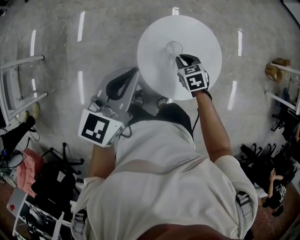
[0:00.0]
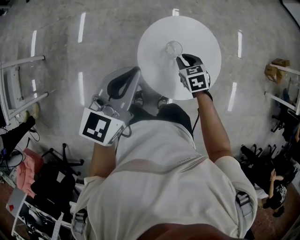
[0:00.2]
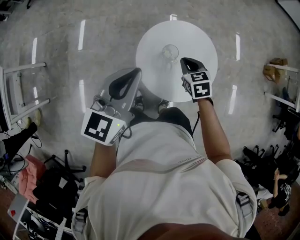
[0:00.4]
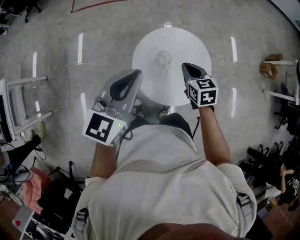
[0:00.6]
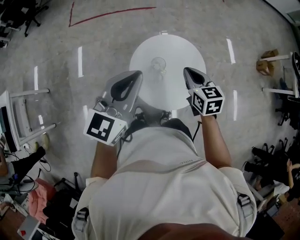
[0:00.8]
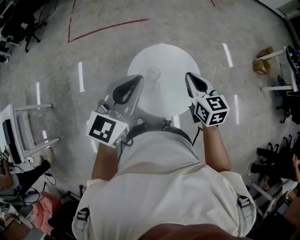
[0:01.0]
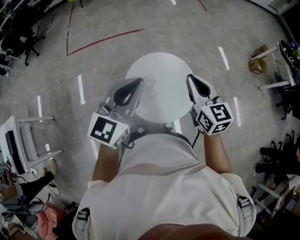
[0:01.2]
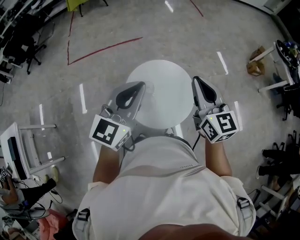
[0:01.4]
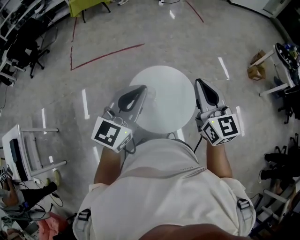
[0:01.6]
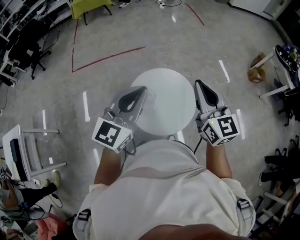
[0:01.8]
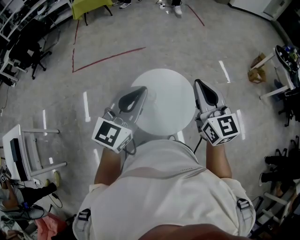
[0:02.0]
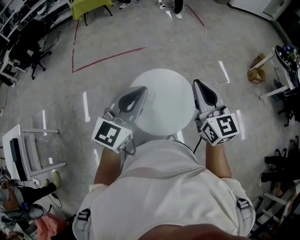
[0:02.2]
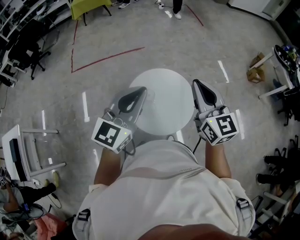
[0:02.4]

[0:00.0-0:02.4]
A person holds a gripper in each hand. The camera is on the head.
0:00.0 to 0:01.2: The left gripper shifts some 20 cm upward and to the right, and rotates approximately 20 degrees. The right gripper heads upward, covering some 35 cm, and angles its fingers upward, by some 40 degrees.
0:01.2 to 0:02.4: The left gripper changes place by about 5 cm. Meanwhile the right gripper moves upward, some 10 cm.

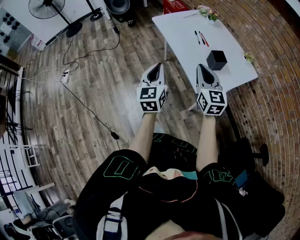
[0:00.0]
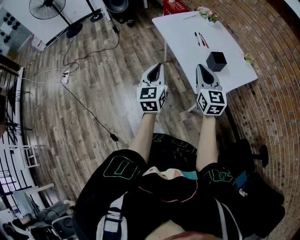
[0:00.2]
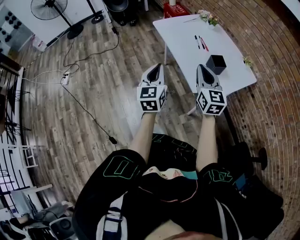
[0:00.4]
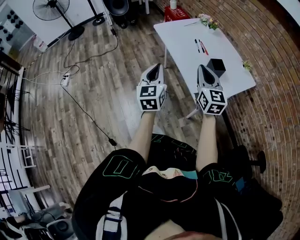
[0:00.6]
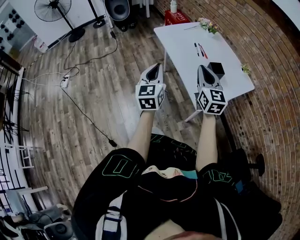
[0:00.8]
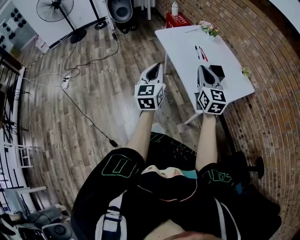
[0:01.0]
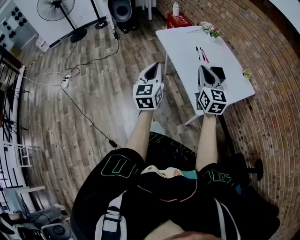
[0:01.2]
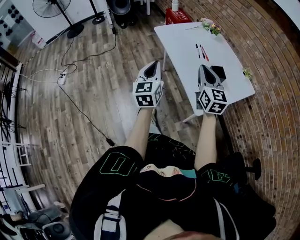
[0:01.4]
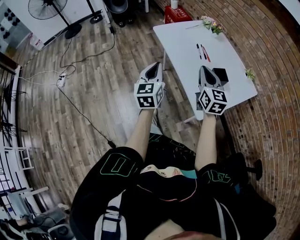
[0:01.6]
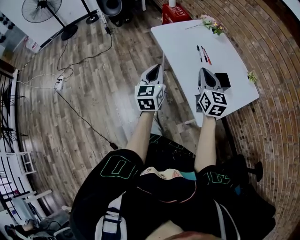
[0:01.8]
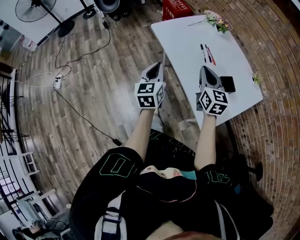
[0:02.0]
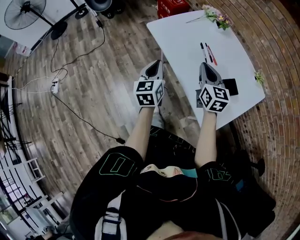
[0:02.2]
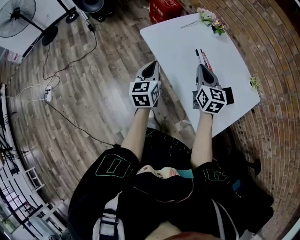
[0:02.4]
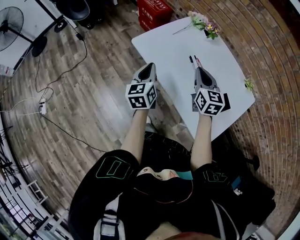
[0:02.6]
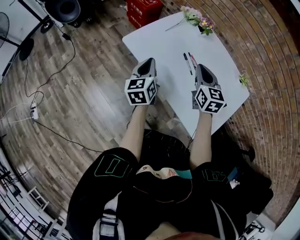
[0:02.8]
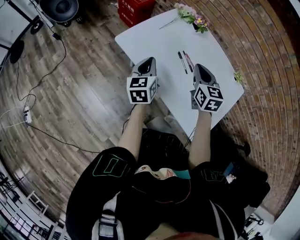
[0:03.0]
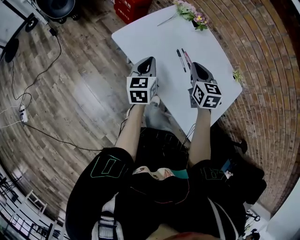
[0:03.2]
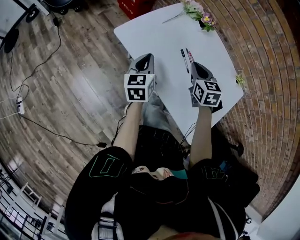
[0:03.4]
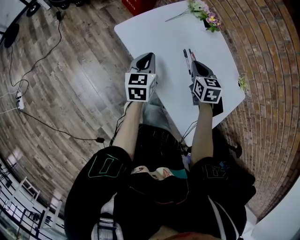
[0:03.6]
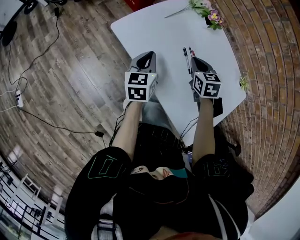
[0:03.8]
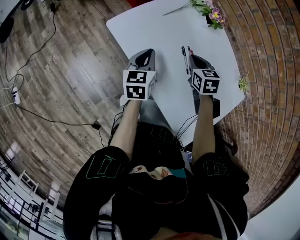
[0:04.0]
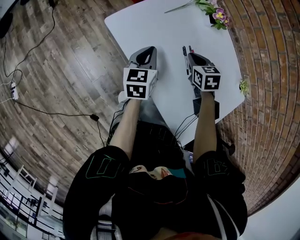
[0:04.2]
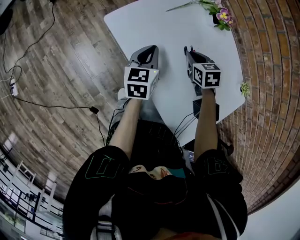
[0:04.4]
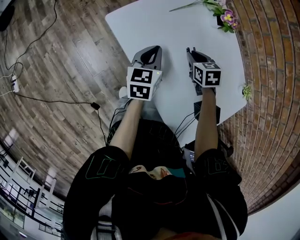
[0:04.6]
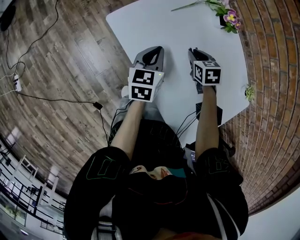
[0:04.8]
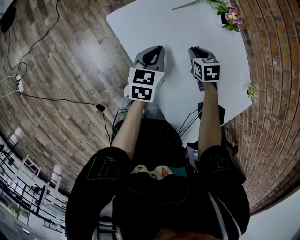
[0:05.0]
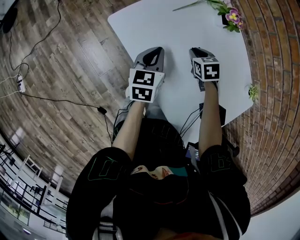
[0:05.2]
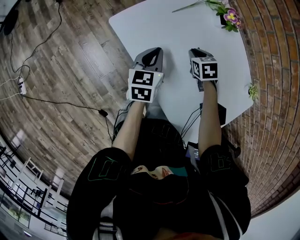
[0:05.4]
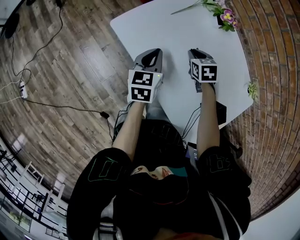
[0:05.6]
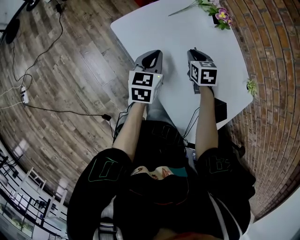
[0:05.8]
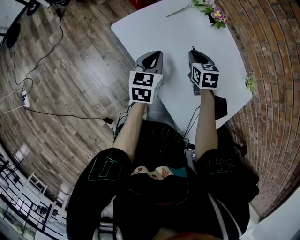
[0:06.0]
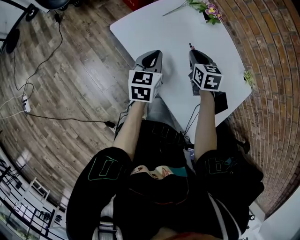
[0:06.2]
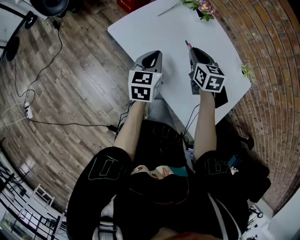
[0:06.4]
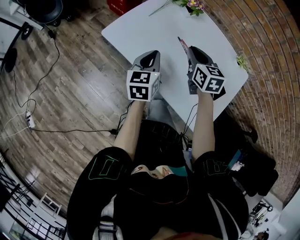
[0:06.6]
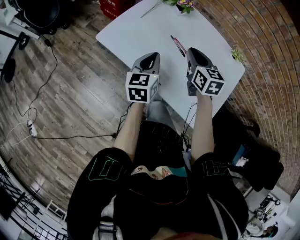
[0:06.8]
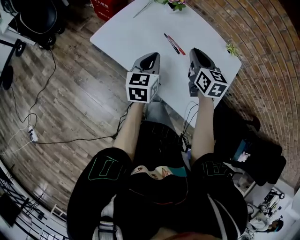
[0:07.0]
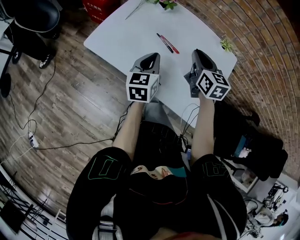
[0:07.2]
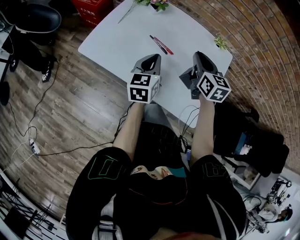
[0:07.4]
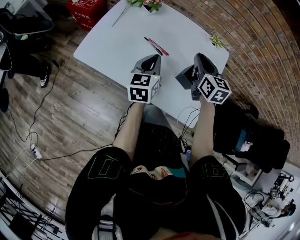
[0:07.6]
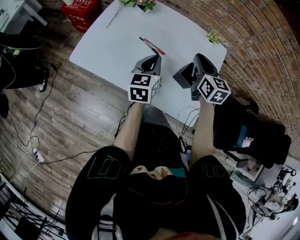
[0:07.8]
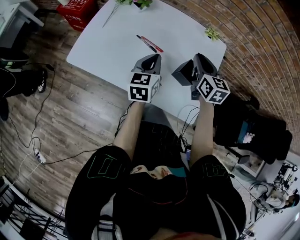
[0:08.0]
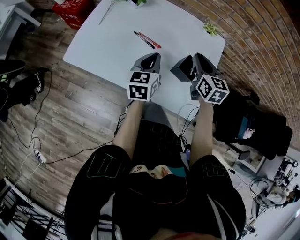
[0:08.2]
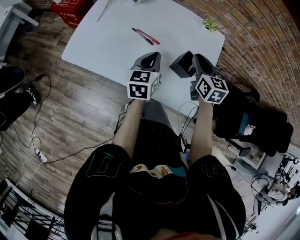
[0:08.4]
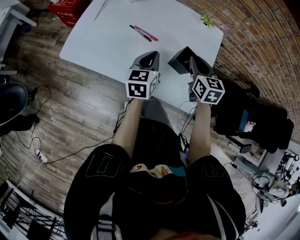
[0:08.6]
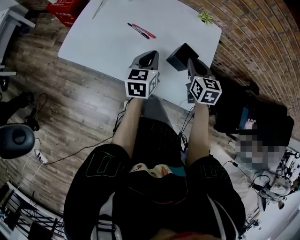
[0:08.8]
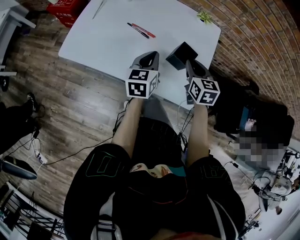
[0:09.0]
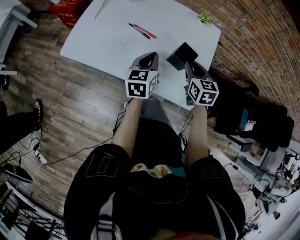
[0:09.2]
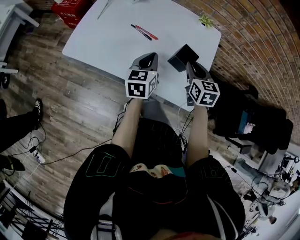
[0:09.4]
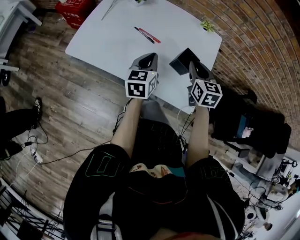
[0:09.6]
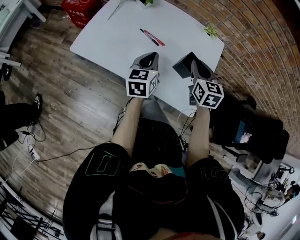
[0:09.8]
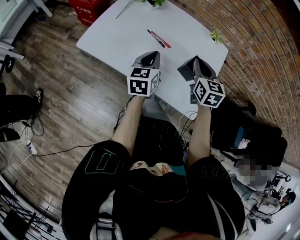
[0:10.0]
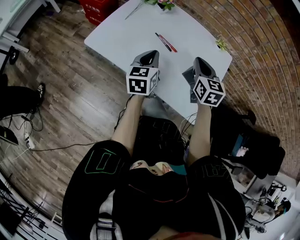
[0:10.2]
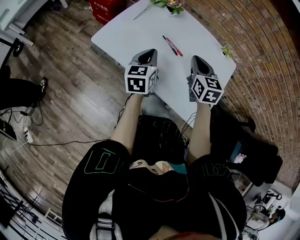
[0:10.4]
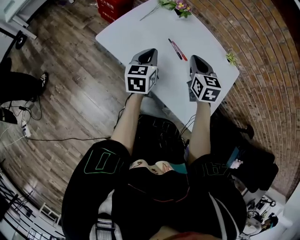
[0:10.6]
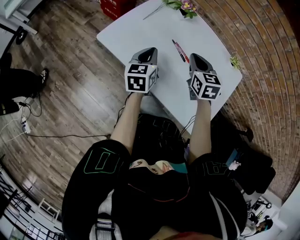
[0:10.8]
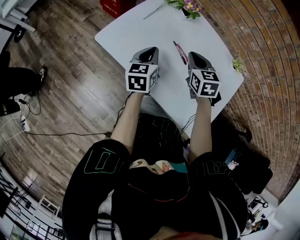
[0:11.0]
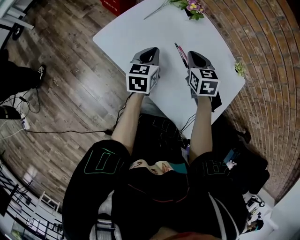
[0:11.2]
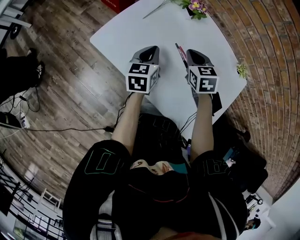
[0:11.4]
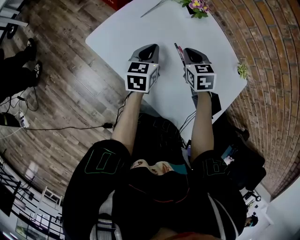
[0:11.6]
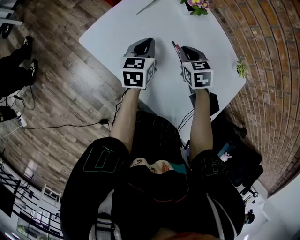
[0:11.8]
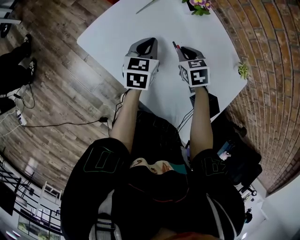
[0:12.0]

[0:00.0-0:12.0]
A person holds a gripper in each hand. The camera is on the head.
0:00.0 to 0:01.6: Both grippers travel together forward, some 10 cm.
0:01.6 to 0:03.0: Both grippers move forward, roughly 30 cm. The left gripper changes its angle by about 30 degrees. The right gripper swivels approximately 30 degrees.
0:03.0 to 0:04.4: The left gripper is displaced downward and forward by approximately 10 cm; the right gripper heads downward and forward, covering some 20 cm, and tilts its fingers some 30 degrees downward.
0:04.4 to 0:06.0: The grippers move only a little.
0:06.0 to 0:07.6: The left gripper goes approximately 20 cm to the right, and swivels approximately 20 degrees. Meanwhile the right gripper moves to the right, upward and backward, about 25 cm, and turns by roughly 40 degrees.
0:07.6 to 0:09.0: The right gripper moves backward, downward and to the right, some 15 cm. The left gripper goes about 5 cm to the right.
0:09.0 to 0:10.4: The left gripper moves to the left, about 15 cm. The right gripper heads to the left and upward, covering about 15 cm.
0:10.4 to 0:12.0: The right gripper travels downward, forward and to the left by approximately 25 cm, and points its fingers roughly 30 degrees further downward, while the left gripper shifts about 20 cm forward and downward.

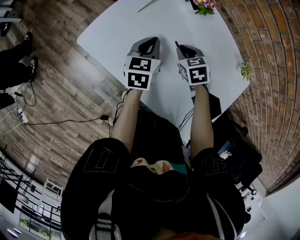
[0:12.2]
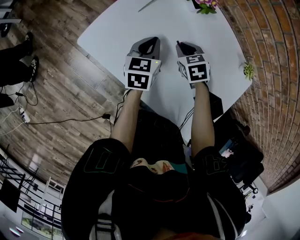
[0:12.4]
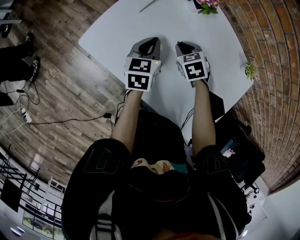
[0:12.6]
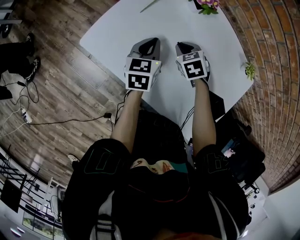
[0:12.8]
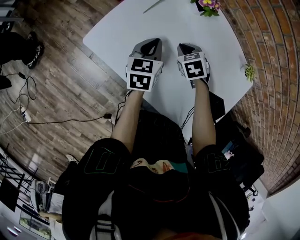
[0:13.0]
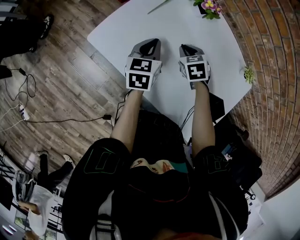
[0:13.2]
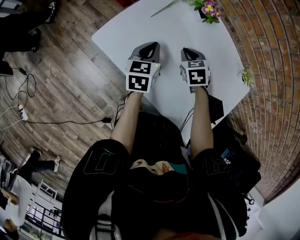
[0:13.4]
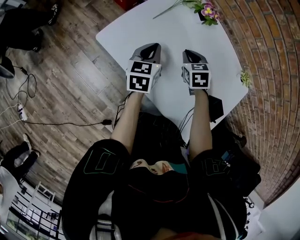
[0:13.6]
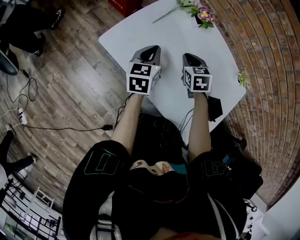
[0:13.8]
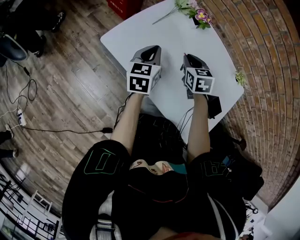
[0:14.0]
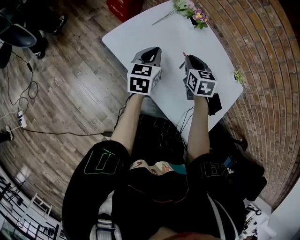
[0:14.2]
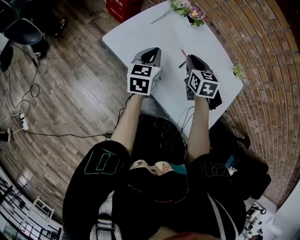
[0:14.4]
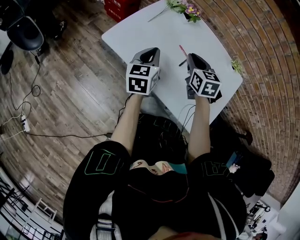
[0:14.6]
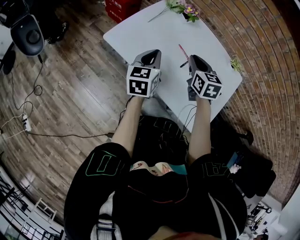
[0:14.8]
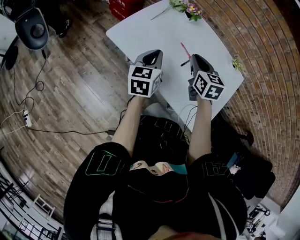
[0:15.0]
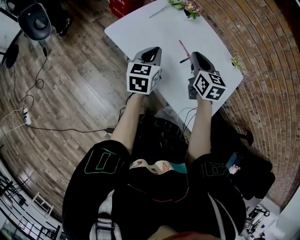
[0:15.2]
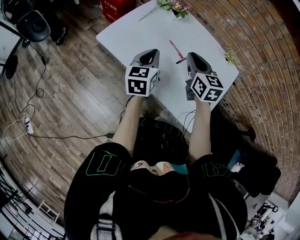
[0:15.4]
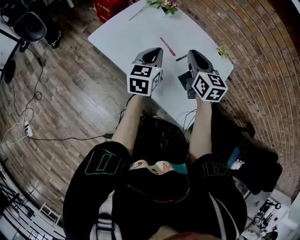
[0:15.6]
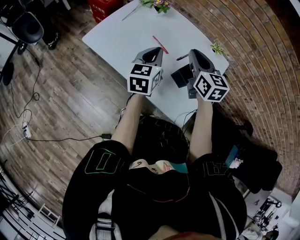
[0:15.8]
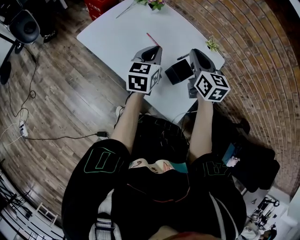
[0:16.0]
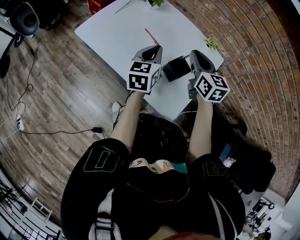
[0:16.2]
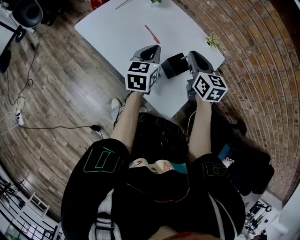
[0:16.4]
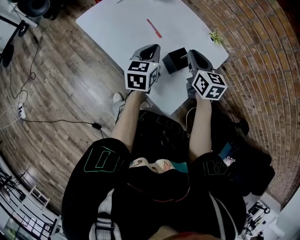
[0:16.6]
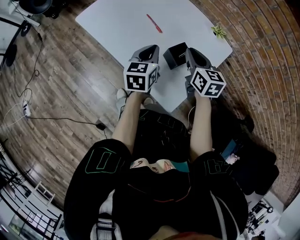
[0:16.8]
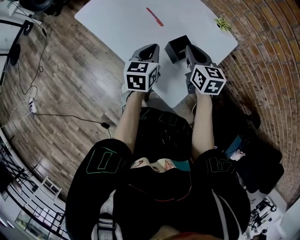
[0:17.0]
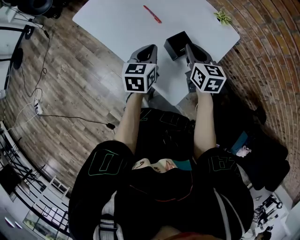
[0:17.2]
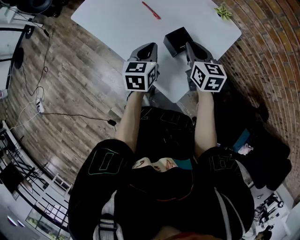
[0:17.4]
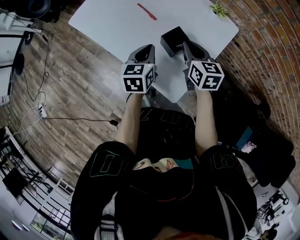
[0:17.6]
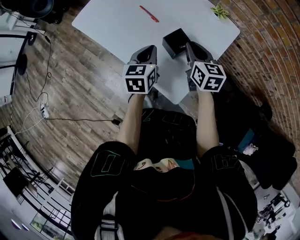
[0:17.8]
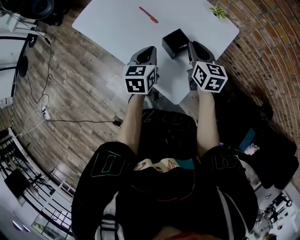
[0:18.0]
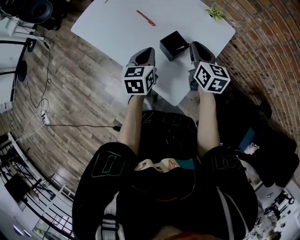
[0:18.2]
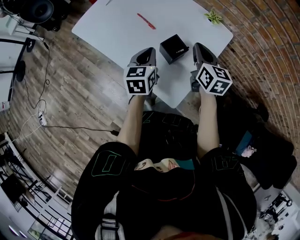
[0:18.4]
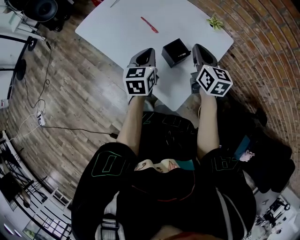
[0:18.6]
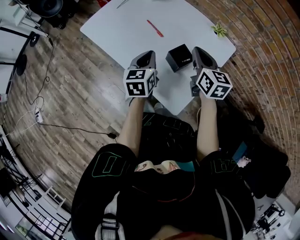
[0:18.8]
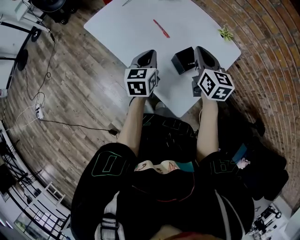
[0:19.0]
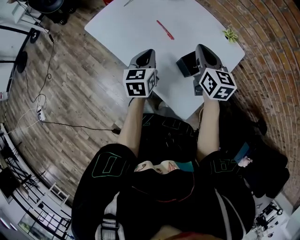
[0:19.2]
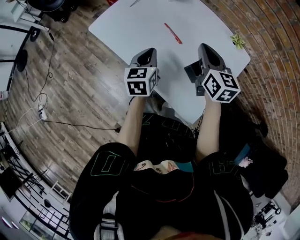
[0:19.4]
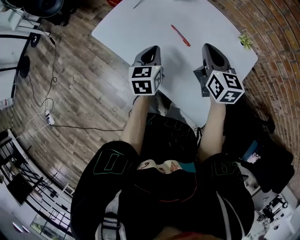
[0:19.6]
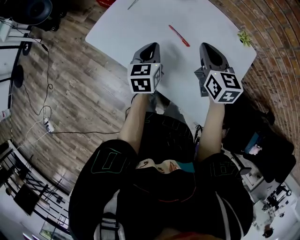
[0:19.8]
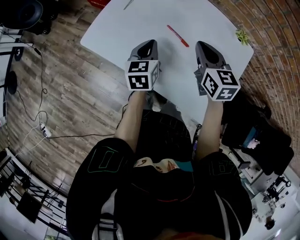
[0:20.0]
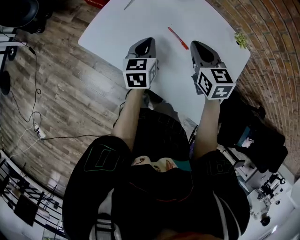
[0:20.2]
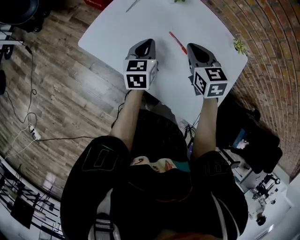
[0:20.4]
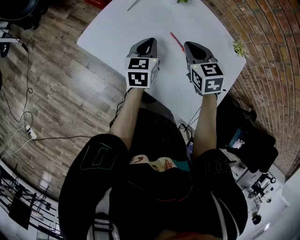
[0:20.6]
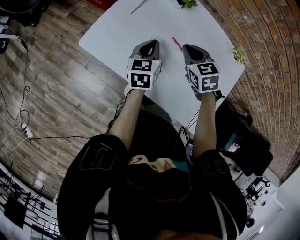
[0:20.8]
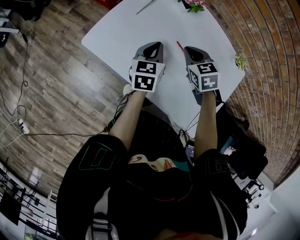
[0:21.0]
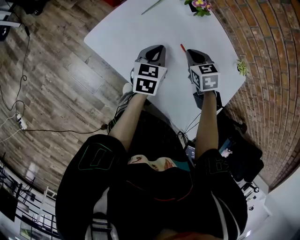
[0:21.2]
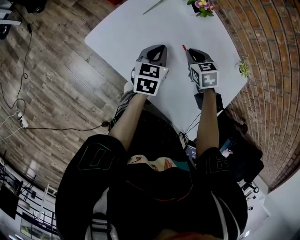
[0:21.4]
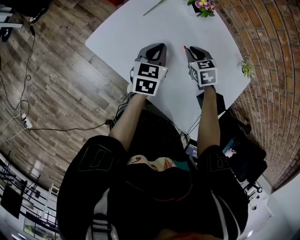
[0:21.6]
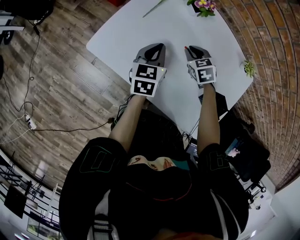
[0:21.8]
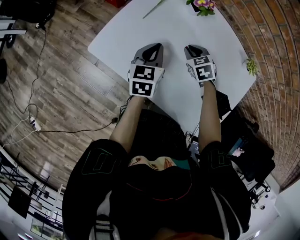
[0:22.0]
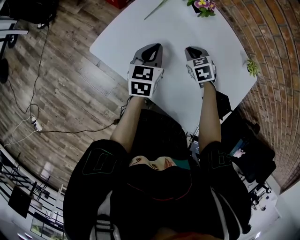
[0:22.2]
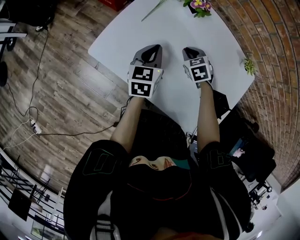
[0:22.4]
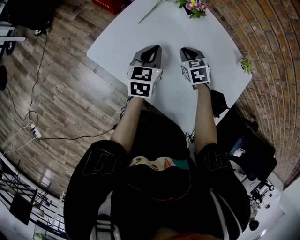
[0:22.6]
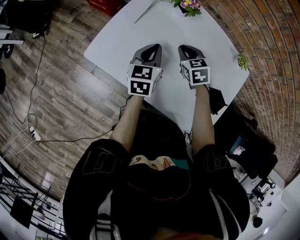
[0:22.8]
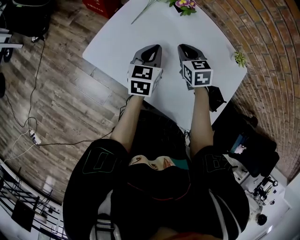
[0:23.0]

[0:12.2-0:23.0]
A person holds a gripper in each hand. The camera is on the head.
0:12.2 to 0:13.8: The right gripper shifts about 5 cm upward. The left gripper is displaced upward and to the left by roughly 10 cm.
0:13.8 to 0:15.2: The left gripper goes about 15 cm backward and upward; the right gripper heads upward and backward, covering roughly 20 cm, and rotates about 30 degrees.
0:15.2 to 0:16.8: The grippers both shift to the right by about 20 cm.
0:16.8 to 0:18.4: The right gripper is displaced to the right by about 5 cm.
0:18.4 to 0:20.0: Both grippers travel together to the left and forward, approximately 20 cm.
0:20.0 to 0:21.4: The right gripper heads downward and forward, covering some 20 cm, and turns by approximately 40 degrees; the left gripper heads forward, covering some 5 cm.
0:21.4 to 0:23.0: The right gripper shifts by some 5 cm.
